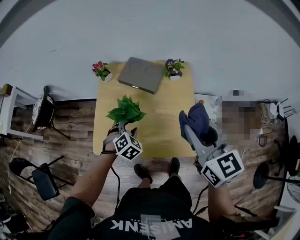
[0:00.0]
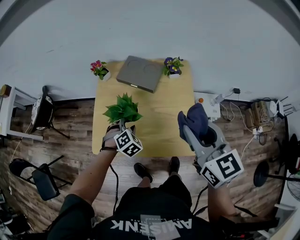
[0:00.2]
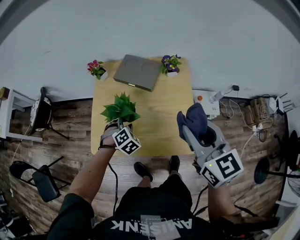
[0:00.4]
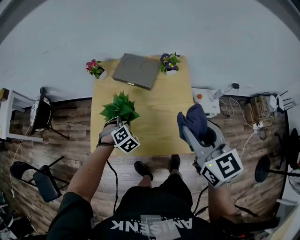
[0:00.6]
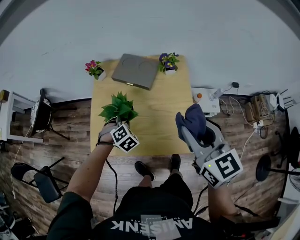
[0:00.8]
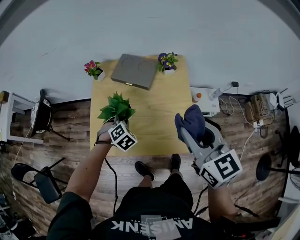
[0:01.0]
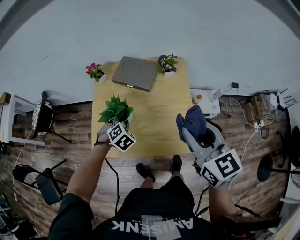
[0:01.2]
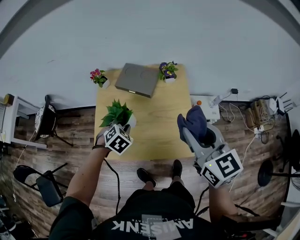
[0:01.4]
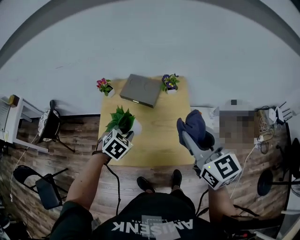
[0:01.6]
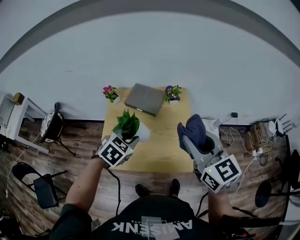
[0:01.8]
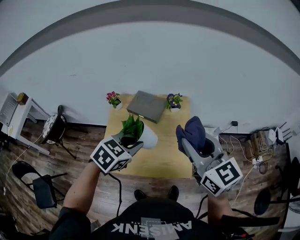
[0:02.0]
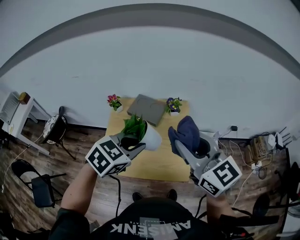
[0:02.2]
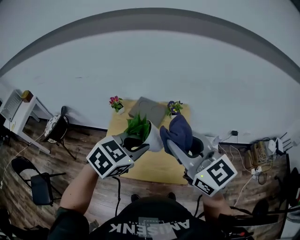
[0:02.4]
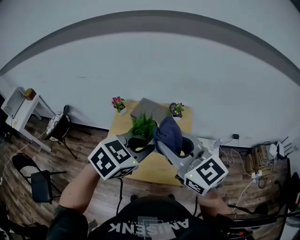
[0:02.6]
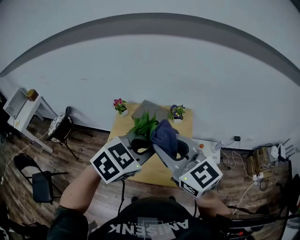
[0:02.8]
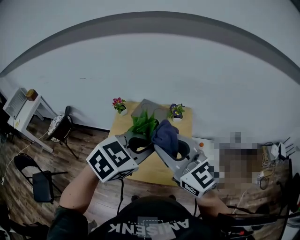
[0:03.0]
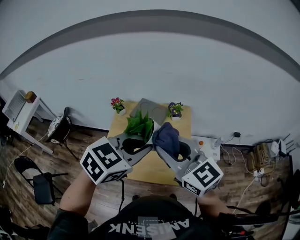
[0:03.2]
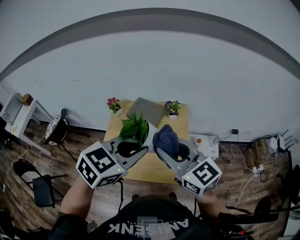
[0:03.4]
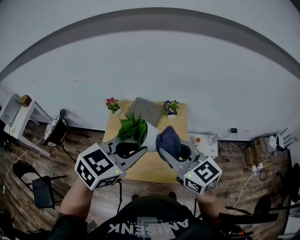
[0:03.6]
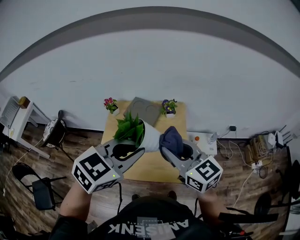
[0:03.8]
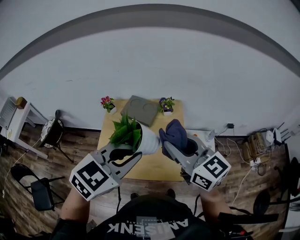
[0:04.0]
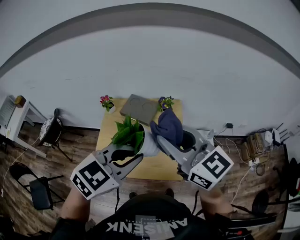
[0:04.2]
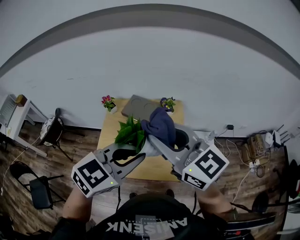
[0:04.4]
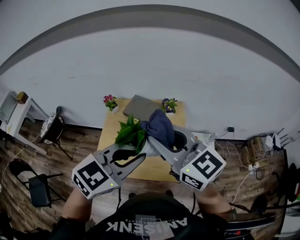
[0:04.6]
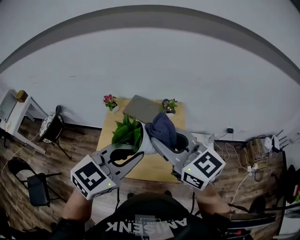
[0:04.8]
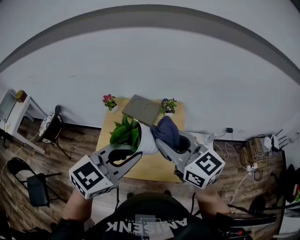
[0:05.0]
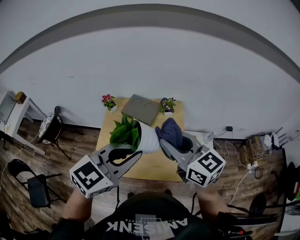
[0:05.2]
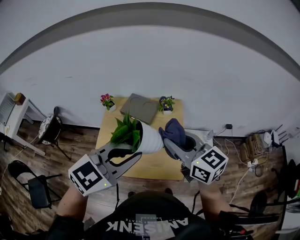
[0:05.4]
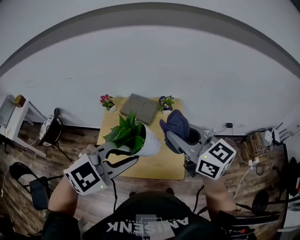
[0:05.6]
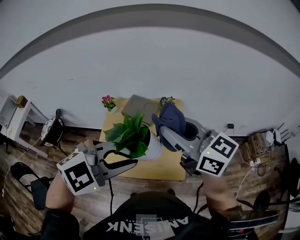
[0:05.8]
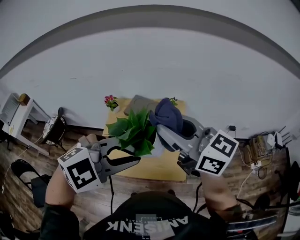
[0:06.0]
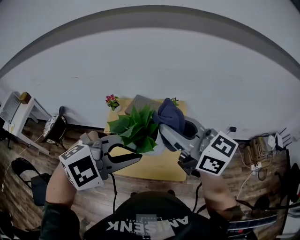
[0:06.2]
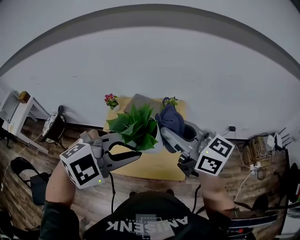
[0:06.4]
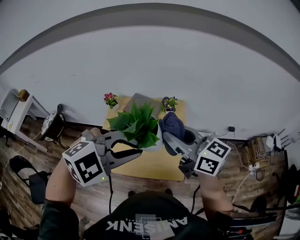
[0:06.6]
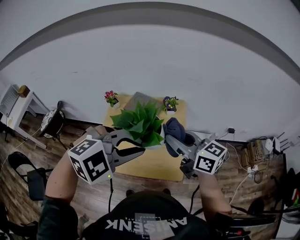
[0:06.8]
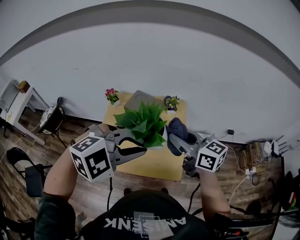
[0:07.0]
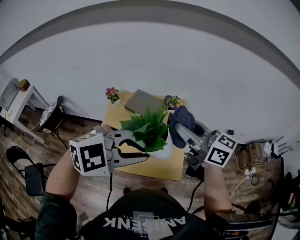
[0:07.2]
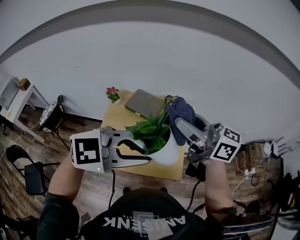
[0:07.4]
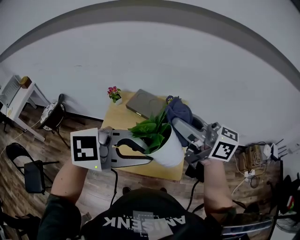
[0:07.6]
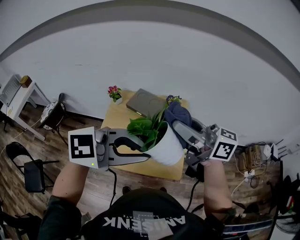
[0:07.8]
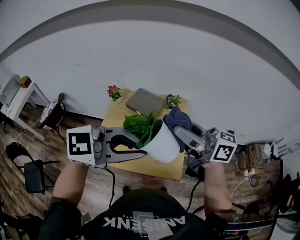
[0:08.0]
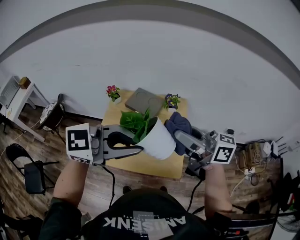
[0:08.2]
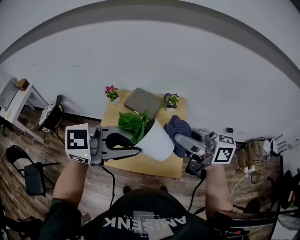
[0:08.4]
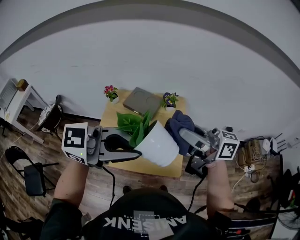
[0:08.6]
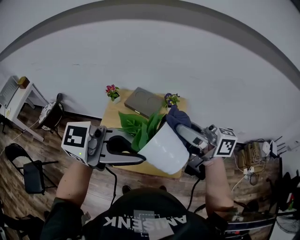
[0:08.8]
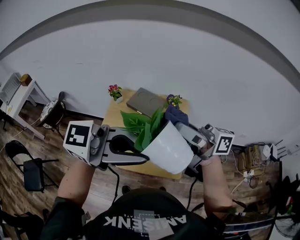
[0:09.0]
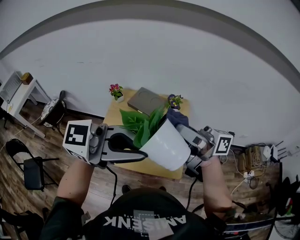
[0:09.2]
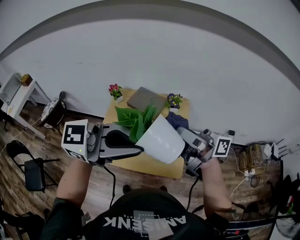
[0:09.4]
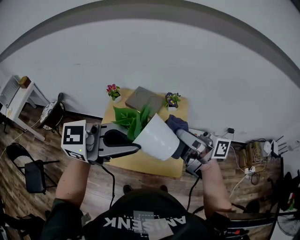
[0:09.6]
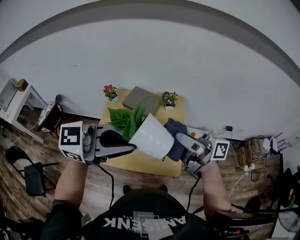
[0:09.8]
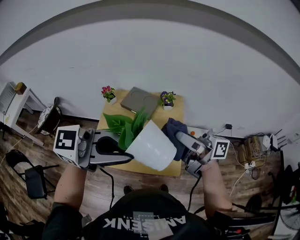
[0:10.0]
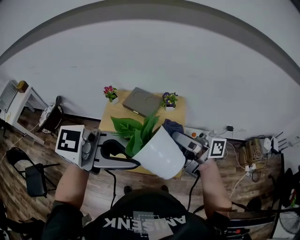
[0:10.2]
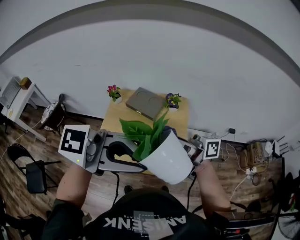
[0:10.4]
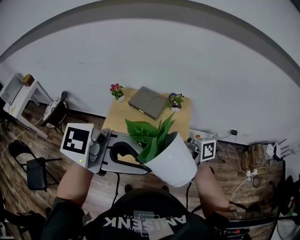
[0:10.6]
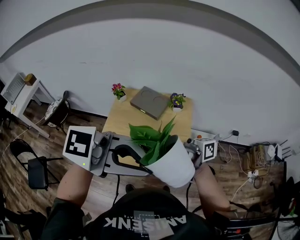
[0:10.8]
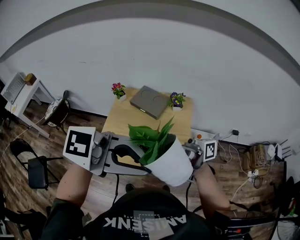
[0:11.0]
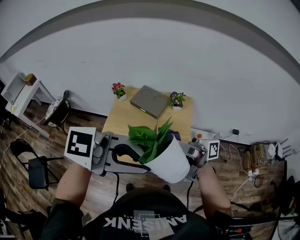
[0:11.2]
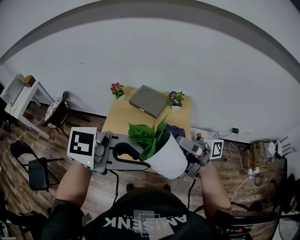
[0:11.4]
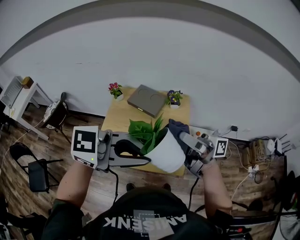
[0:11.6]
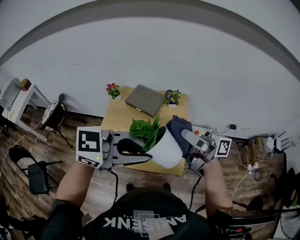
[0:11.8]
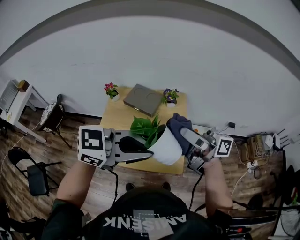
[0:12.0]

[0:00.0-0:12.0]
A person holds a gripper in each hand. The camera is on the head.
0:00.0 to 0:01.6: The left gripper shifts approximately 10 cm upward, and closes its fingers.
0:01.6 to 0:03.0: The right gripper moves upward and to the left, about 10 cm, and turns by about 30 degrees, while the left gripper shifts approximately 25 cm upward and to the right, and turns by roughly 20 degrees.
0:03.0 to 0:04.4: The right gripper reaches about 5 cm downward, then returns.
0:04.4 to 0:06.0: The left gripper turns by roughly 40 degrees, while the right gripper travels downward and back again, some 10 cm each way.
0:06.0 to 0:07.6: The right gripper reaches roughly 15 cm downward, then returns; the left gripper turns by about 30 degrees.
0:07.6 to 0:09.0: The left gripper shifts by roughly 5 cm, and turns by approximately 30 degrees. Meanwhile the right gripper changes its angle by approximately 30 degrees.
0:09.0 to 0:10.4: The right gripper heads downward, covering some 5 cm.
0:10.4 to 0:12.0: The right gripper shifts by about 5 cm. Meanwhile the left gripper goes about 10 cm downward, and turns by about 20 degrees.

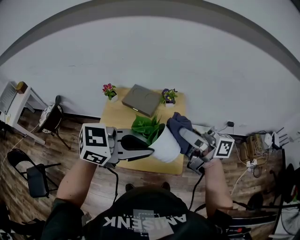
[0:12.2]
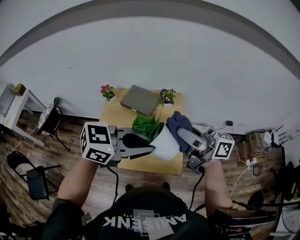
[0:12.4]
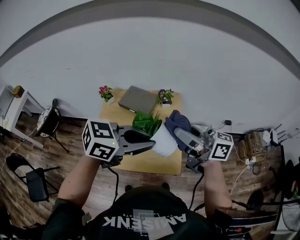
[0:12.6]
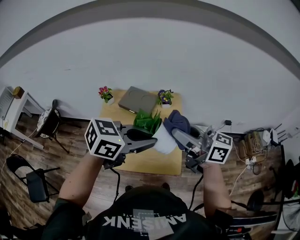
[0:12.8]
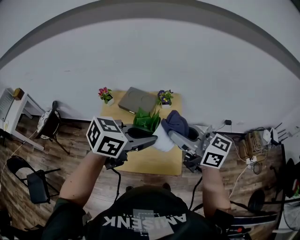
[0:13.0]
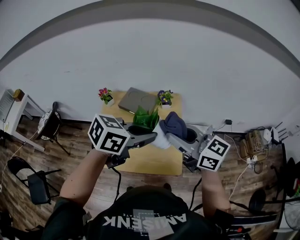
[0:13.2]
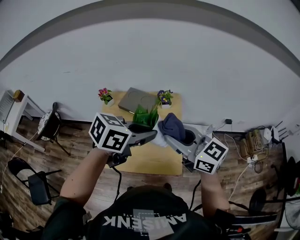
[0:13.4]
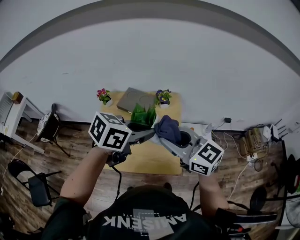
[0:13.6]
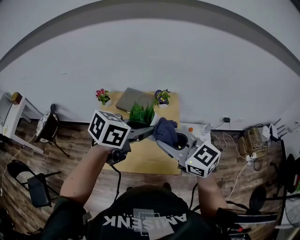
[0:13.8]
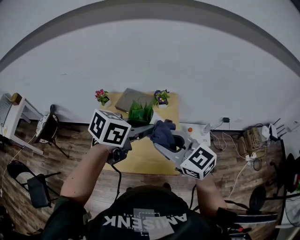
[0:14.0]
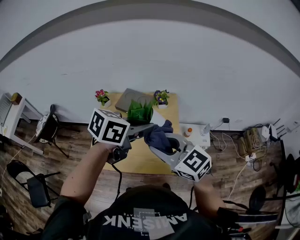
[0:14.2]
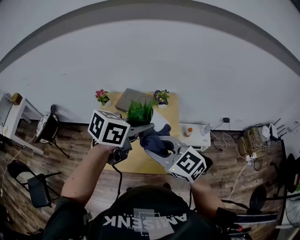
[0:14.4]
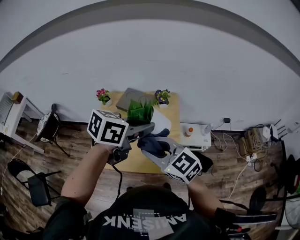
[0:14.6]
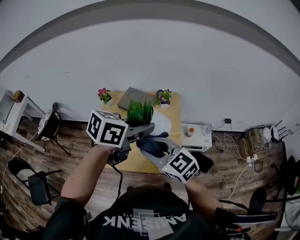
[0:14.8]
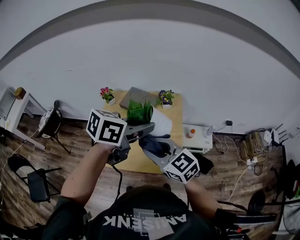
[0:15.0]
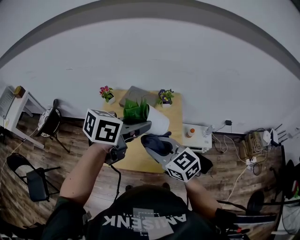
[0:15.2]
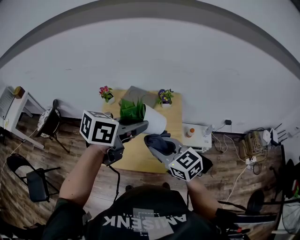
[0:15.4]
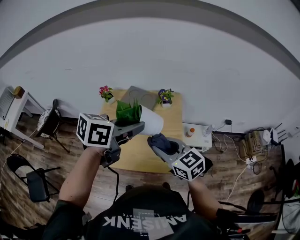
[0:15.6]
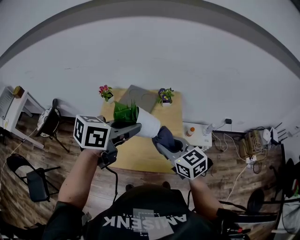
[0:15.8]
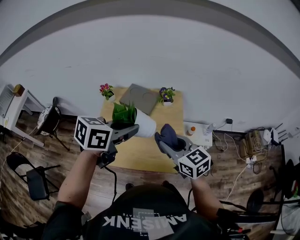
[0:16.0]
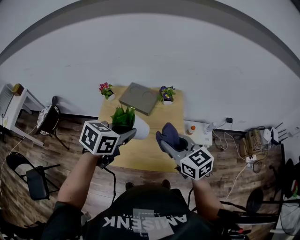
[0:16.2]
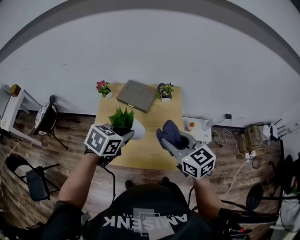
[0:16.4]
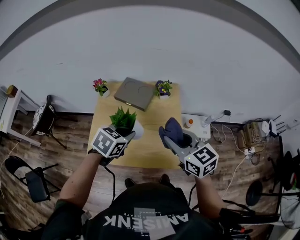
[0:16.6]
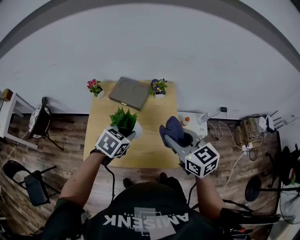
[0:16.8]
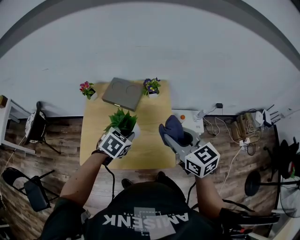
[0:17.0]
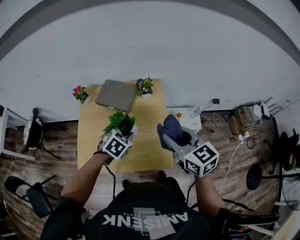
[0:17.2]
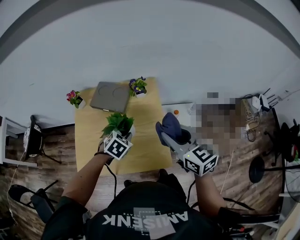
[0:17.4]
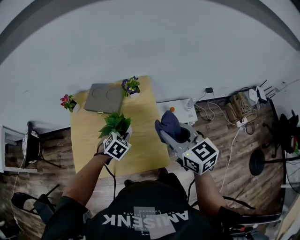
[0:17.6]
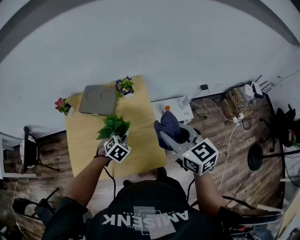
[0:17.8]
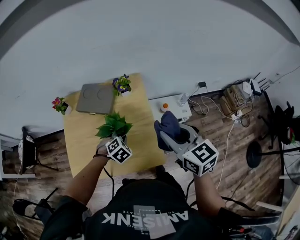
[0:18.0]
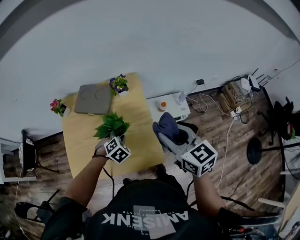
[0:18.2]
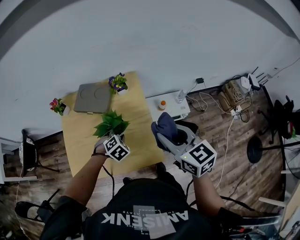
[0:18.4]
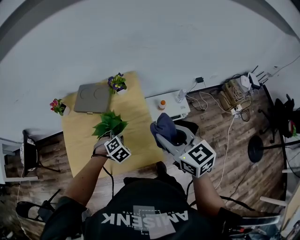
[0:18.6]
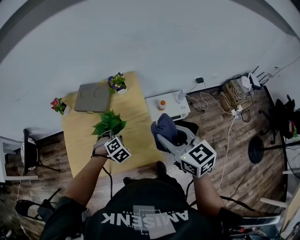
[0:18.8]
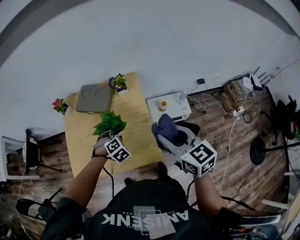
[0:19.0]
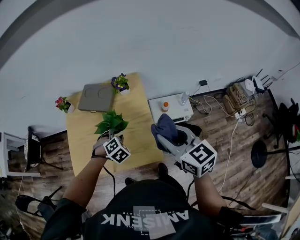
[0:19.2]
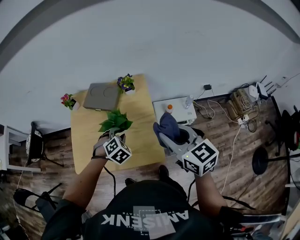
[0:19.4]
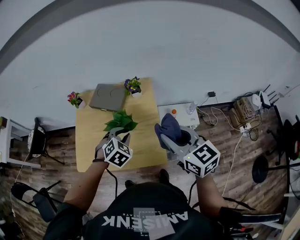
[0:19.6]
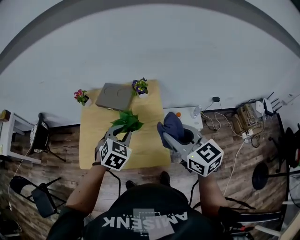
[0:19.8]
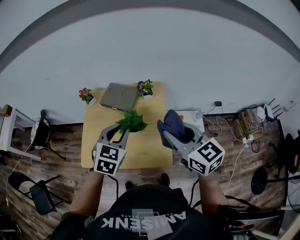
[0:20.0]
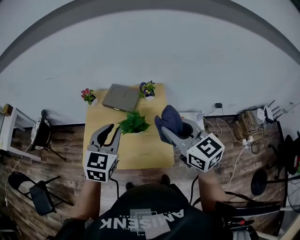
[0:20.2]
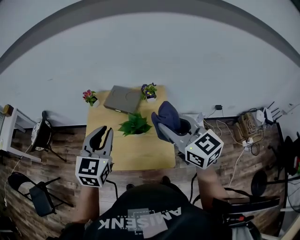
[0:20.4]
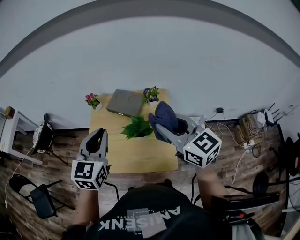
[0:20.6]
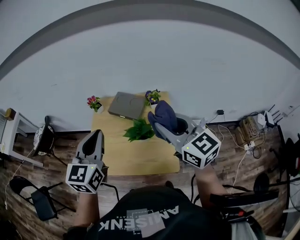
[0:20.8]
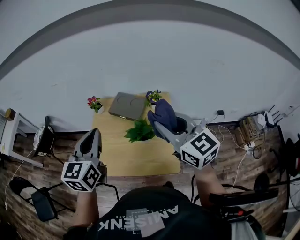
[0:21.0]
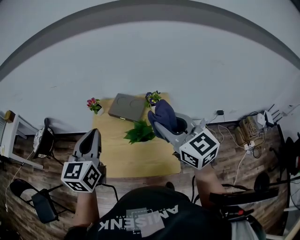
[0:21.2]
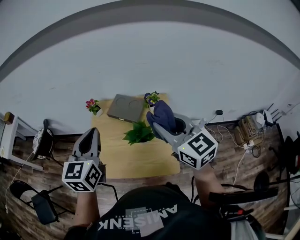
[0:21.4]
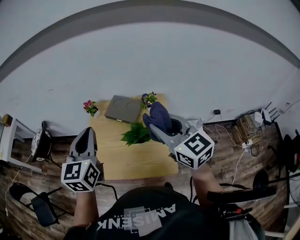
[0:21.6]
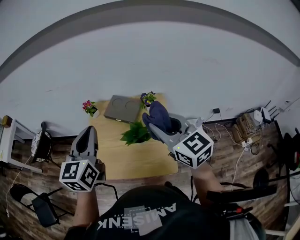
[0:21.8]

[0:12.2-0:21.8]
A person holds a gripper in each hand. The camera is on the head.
0:12.2 to 0:13.8: The left gripper ends up some 10 cm from where it was, and swivels some 30 degrees, while the right gripper moves about 5 cm, and rolls counterclockwise, seen from behind, by some 50 degrees.
0:13.8 to 0:15.4: The right gripper goes about 5 cm downward.
0:15.4 to 0:17.0: The right gripper shifts roughly 10 cm to the right and forward. Meanwhile the left gripper travels downward by roughly 20 cm, and tips its fingers downward by about 30 degrees.
0:17.0 to 0:18.6: The right gripper shifts about 10 cm to the right. Meanwhile the left gripper is displaced downward and to the right by about 15 cm, and swivels approximately 40 degrees.
0:18.6 to 0:20.2: The left gripper shifts some 30 cm upward, and tips its fingers upward by about 40 degrees; the right gripper heads upward and to the left, covering some 10 cm.
0:20.2 to 0:21.8: The left gripper goes roughly 15 cm upward and to the left, and turns by approximately 30 degrees, while the right gripper moves forward, about 5 cm.

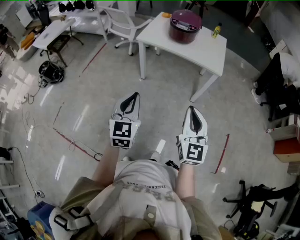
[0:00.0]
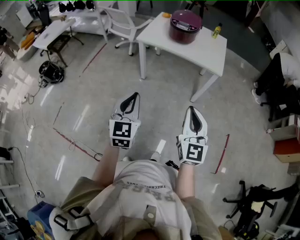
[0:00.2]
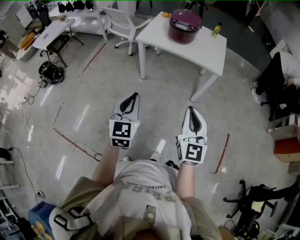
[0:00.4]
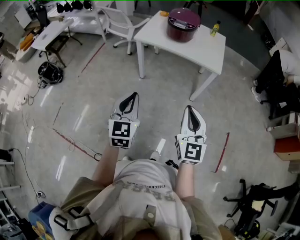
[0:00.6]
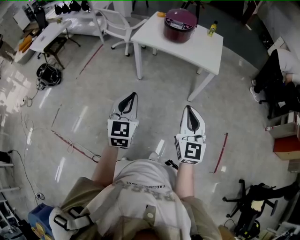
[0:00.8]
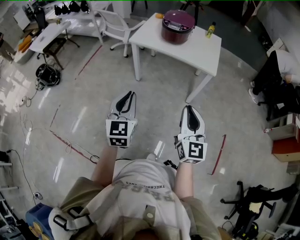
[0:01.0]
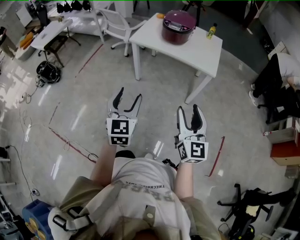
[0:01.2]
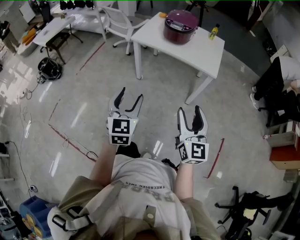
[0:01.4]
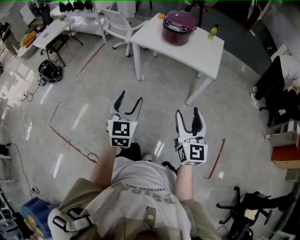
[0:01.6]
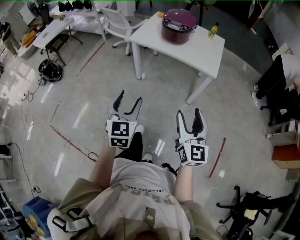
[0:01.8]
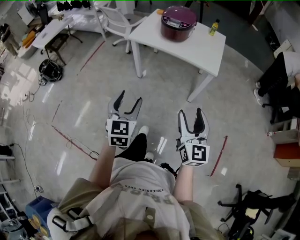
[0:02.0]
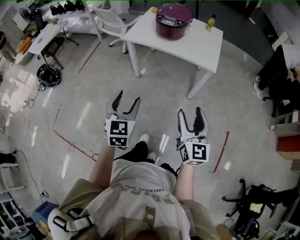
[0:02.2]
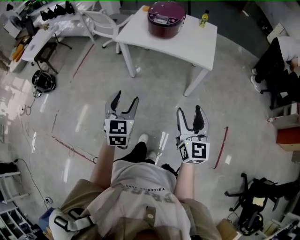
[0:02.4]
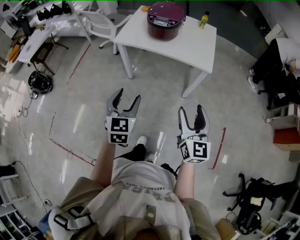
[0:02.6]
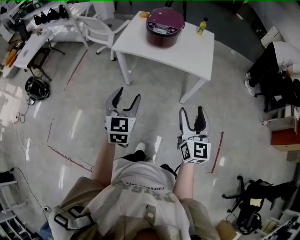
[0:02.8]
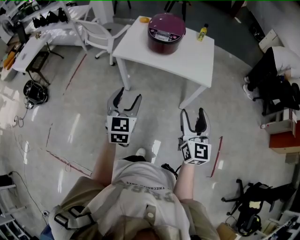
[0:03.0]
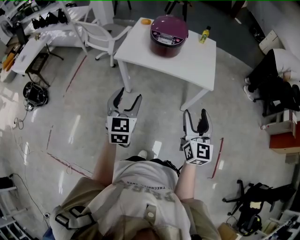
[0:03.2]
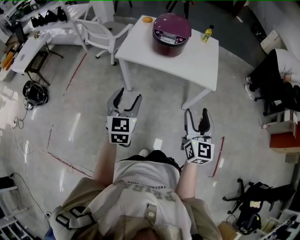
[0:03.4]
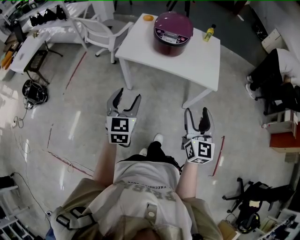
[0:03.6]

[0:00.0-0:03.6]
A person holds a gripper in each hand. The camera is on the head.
0:00.0 to 0:01.8: Both grippers move to the right, approximately 10 cm. The right gripper opens. Meanwhile the left gripper opens.
0:01.8 to 0:03.6: Both grippers travel together forward, approximately 25 cm.
